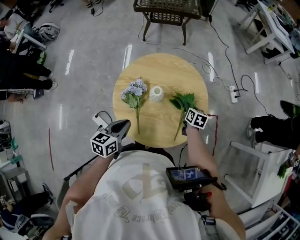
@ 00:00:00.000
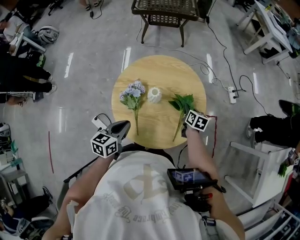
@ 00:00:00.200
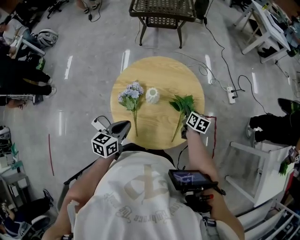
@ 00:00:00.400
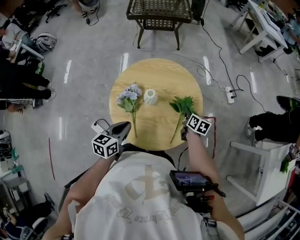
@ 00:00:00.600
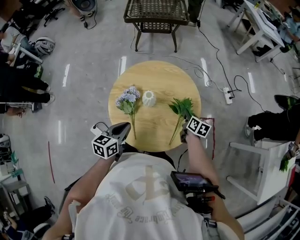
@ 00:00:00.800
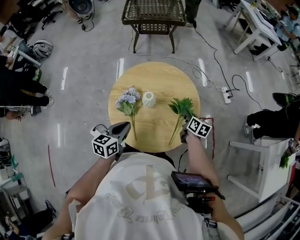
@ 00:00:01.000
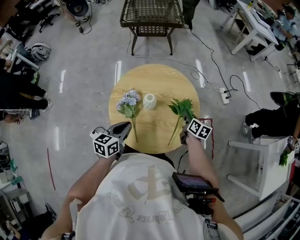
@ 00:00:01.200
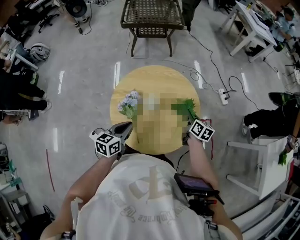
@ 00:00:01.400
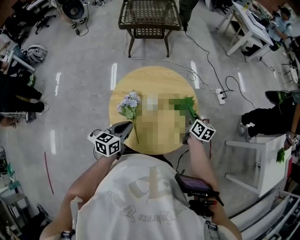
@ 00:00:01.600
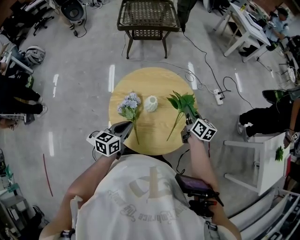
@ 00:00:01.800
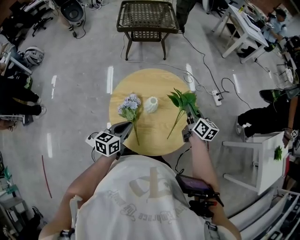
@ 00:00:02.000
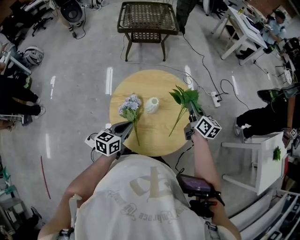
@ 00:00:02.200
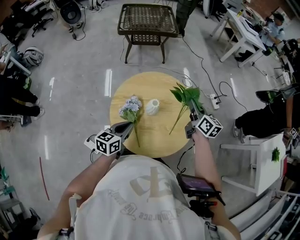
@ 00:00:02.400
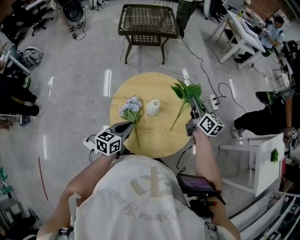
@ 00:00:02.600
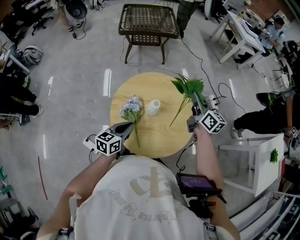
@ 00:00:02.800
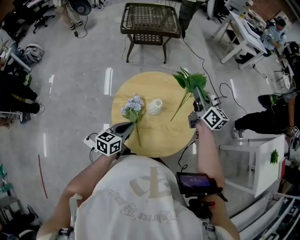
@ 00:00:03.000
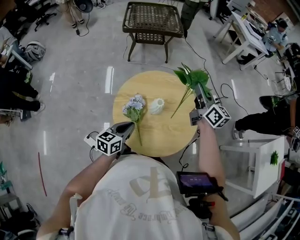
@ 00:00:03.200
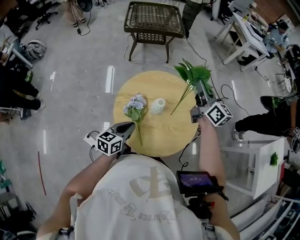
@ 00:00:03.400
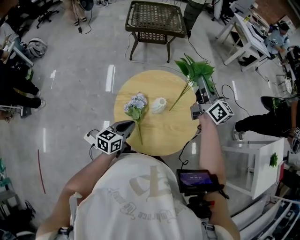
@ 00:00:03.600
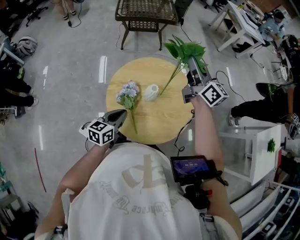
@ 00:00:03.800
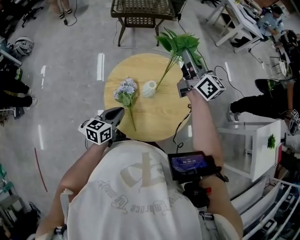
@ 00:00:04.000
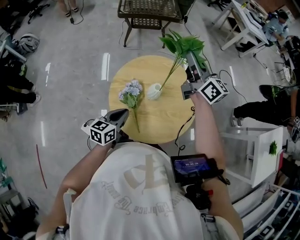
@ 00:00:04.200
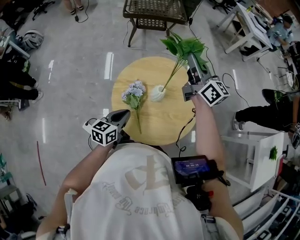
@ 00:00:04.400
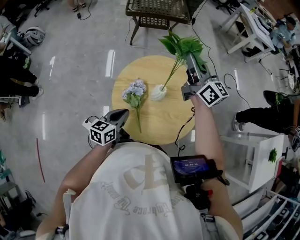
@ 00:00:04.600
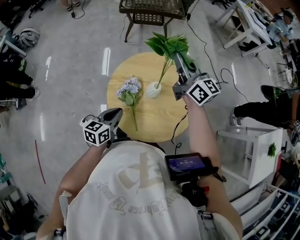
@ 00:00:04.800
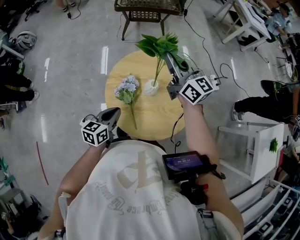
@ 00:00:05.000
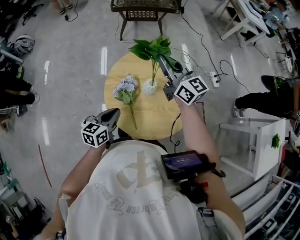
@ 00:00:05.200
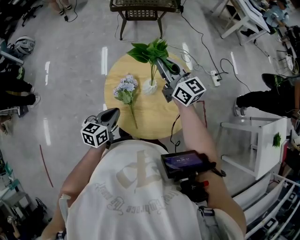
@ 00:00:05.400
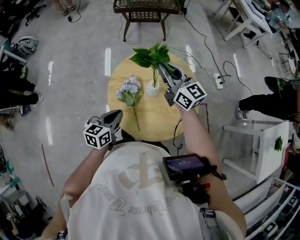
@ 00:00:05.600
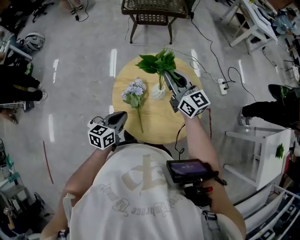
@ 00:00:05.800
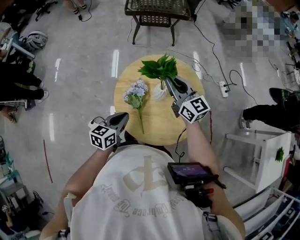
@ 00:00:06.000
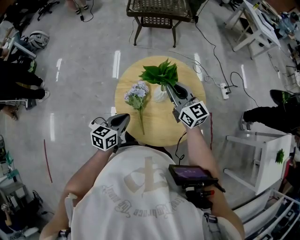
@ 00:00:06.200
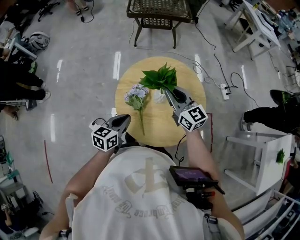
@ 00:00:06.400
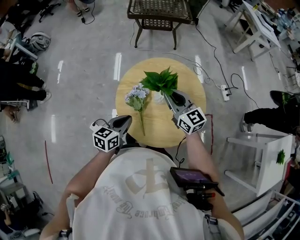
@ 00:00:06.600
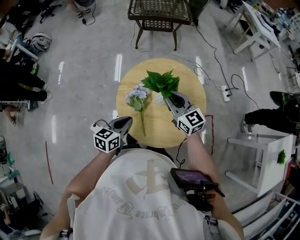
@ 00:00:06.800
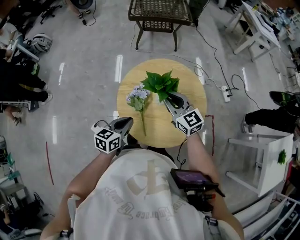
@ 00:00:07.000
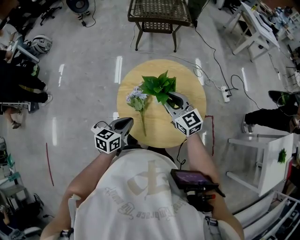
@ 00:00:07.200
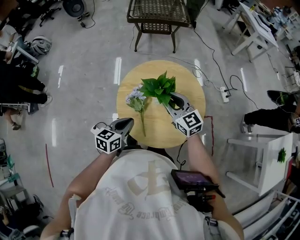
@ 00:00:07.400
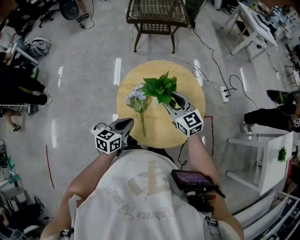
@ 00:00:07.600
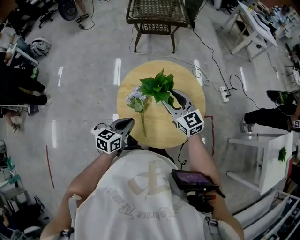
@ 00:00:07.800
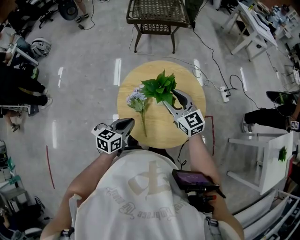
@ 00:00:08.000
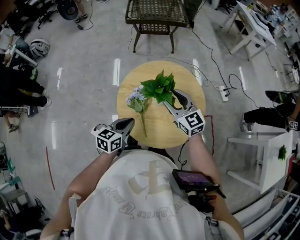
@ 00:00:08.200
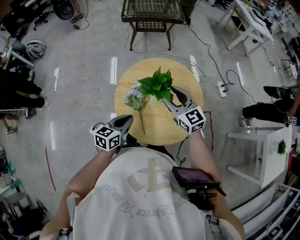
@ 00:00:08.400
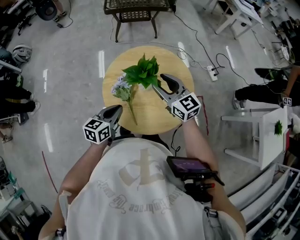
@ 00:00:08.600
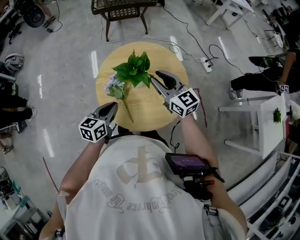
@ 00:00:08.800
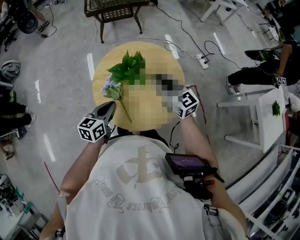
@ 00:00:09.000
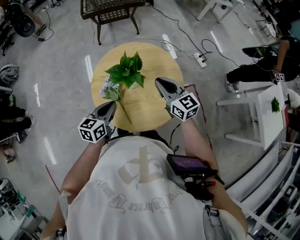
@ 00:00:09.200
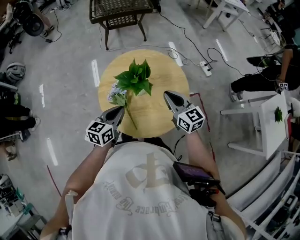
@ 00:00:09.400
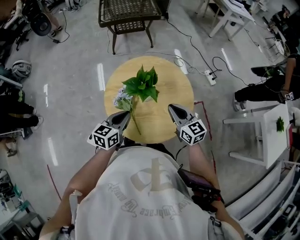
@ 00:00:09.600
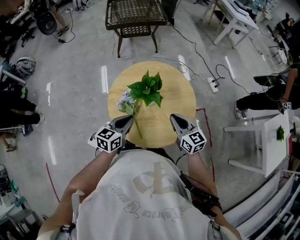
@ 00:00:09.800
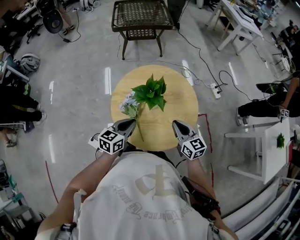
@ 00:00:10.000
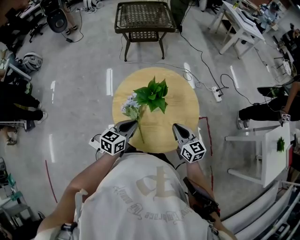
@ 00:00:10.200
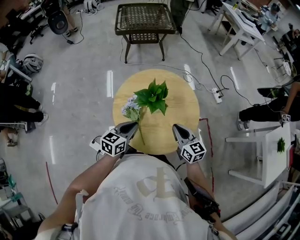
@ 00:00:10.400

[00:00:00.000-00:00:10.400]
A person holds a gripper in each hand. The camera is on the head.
00:00:00.000 to 00:00:01.400: The right gripper moves upward, some 10 cm.
00:00:01.400 to 00:00:03.000: The right gripper moves upward, some 20 cm, and turns by roughly 30 degrees.
00:00:03.000 to 00:00:04.400: The right gripper heads to the left and upward, covering roughly 10 cm.
00:00:04.400 to 00:00:06.000: The right gripper heads downward, to the left and backward, covering roughly 15 cm.
00:00:06.000 to 00:00:07.400: The right gripper goes roughly 5 cm backward.
00:00:07.400 to 00:00:09.000: The right gripper travels to the right by approximately 5 cm, and opens, then closes once more.
00:00:09.000 to 00:00:10.400: The right gripper heads backward and downward, covering roughly 10 cm.

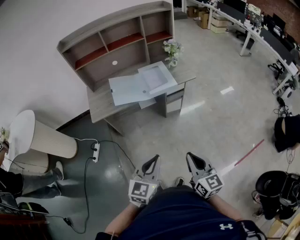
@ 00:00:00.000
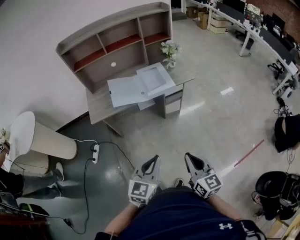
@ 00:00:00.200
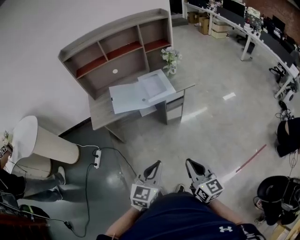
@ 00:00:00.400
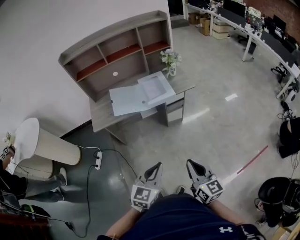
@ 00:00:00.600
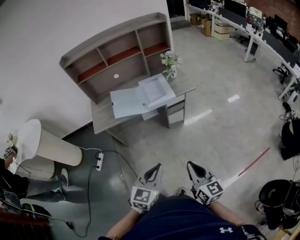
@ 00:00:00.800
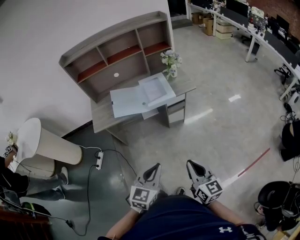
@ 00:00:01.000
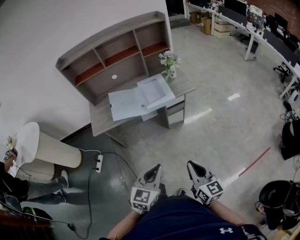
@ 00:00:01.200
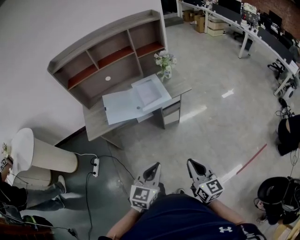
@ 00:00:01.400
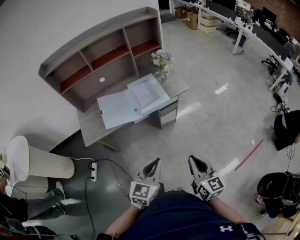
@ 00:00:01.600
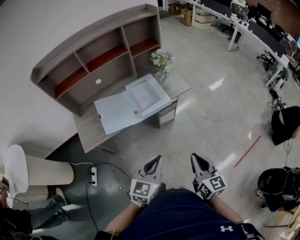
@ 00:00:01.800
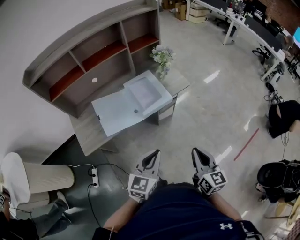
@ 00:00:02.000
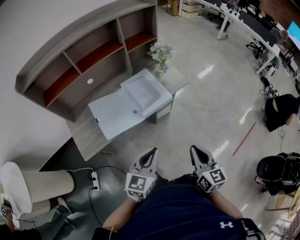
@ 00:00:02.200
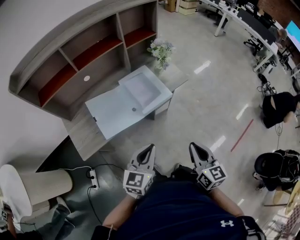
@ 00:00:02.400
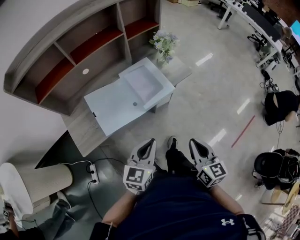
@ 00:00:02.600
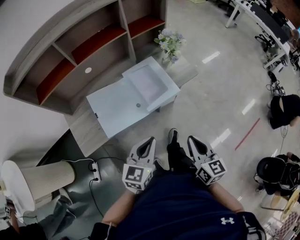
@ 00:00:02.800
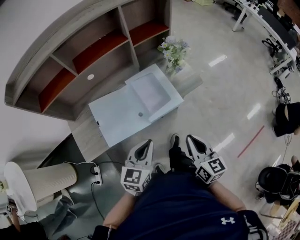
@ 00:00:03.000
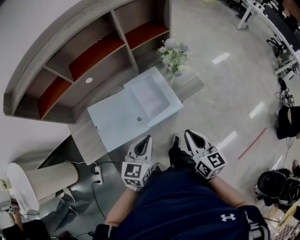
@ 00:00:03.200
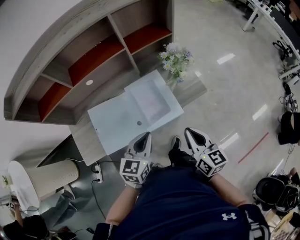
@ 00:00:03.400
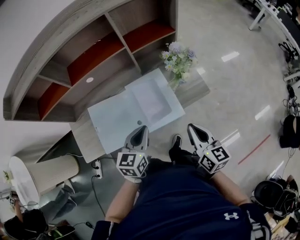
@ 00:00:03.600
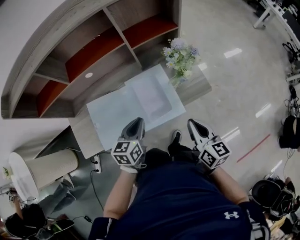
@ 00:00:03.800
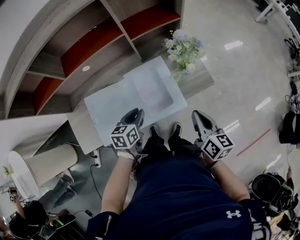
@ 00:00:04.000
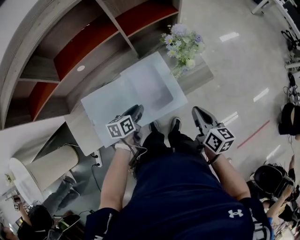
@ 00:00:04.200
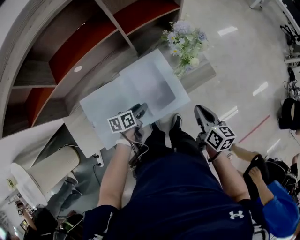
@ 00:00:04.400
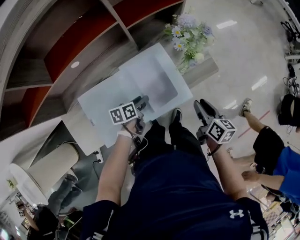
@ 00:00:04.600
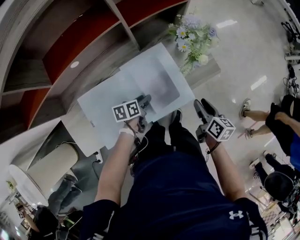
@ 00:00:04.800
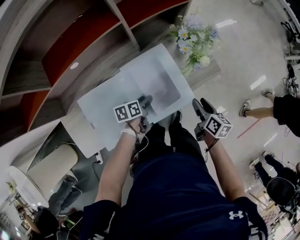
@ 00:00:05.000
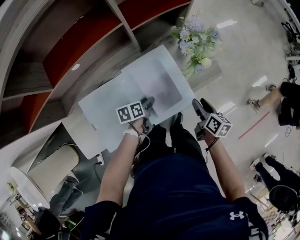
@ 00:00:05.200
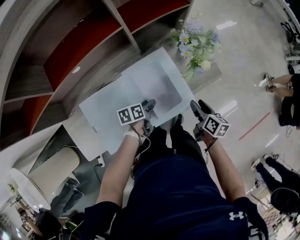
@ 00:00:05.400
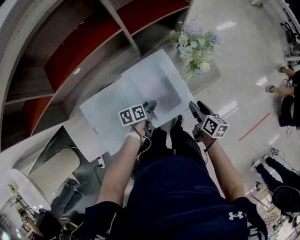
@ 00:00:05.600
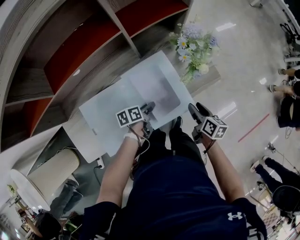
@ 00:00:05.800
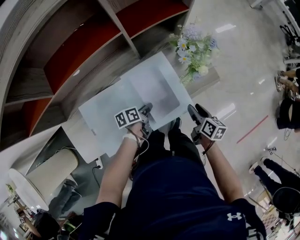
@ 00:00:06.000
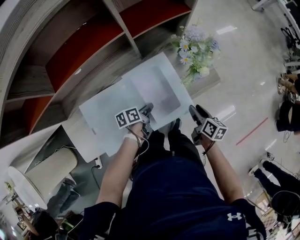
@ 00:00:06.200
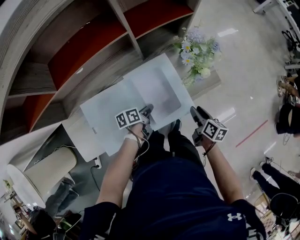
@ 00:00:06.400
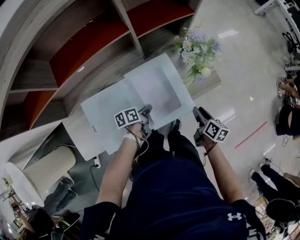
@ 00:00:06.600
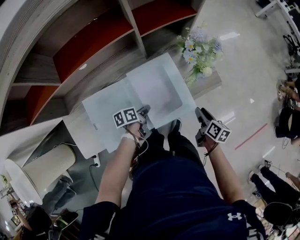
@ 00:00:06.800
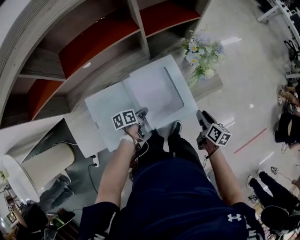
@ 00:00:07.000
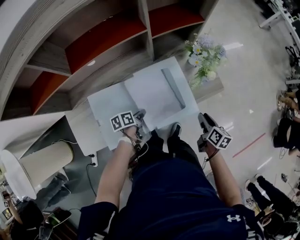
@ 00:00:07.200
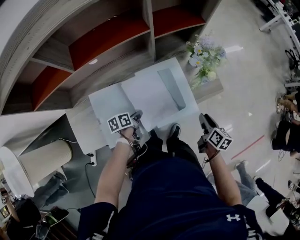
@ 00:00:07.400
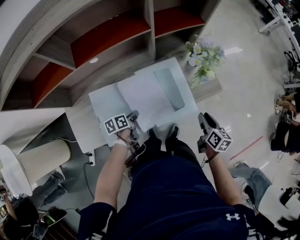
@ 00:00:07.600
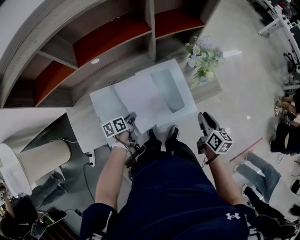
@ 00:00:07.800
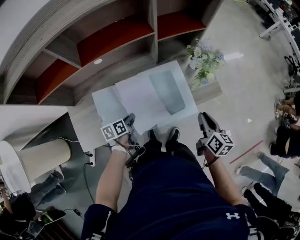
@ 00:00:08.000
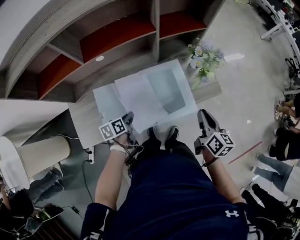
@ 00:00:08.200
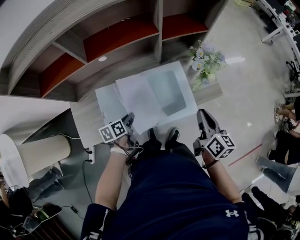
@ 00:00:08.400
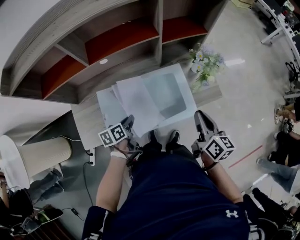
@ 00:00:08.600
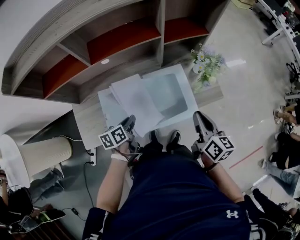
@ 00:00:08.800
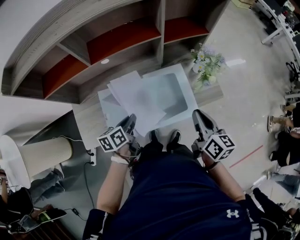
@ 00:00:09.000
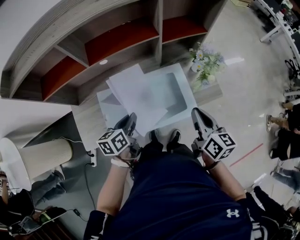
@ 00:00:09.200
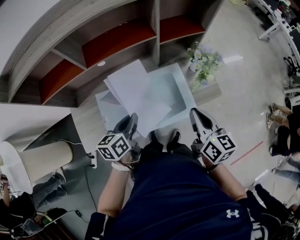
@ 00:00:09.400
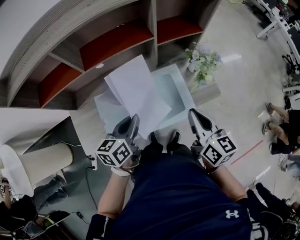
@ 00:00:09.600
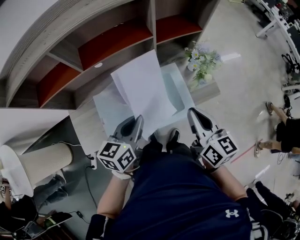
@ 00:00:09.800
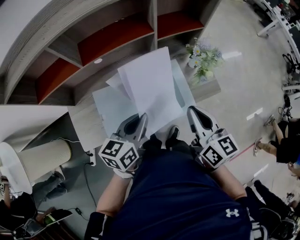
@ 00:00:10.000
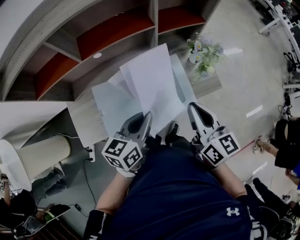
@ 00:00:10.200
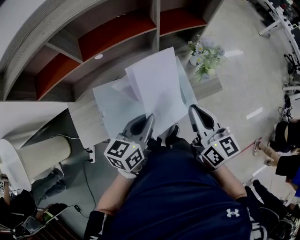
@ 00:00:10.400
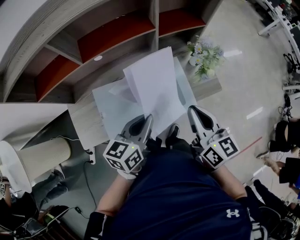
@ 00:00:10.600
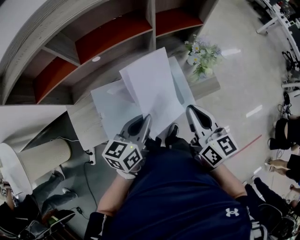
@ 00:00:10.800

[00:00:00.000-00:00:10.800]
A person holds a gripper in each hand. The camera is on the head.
00:00:00.000 to 00:00:01.600: The two grippers go roughly 15 cm forward.
00:00:01.600 to 00:00:03.000: The two grippers go about 30 cm forward and to the left.
00:00:03.000 to 00:00:04.600: Both grippers travel together forward and downward, some 30 cm. The right gripper turns by about 30 degrees, and opens. The left gripper rolls counterclockwise, seen from behind, by about 40 degrees, and opens its fingers.
00:00:04.600 to 00:00:06.200: The left gripper closes; the right gripper travels downward by roughly 10 cm.
00:00:06.200 to 00:00:07.800: The right gripper is displaced upward by roughly 10 cm. The left gripper goes some 15 cm to the left and backward.
00:00:07.800 to 00:00:09.200: The right gripper moves upward and to the left, about 15 cm, and closes up, while the left gripper is displaced upward by about 15 cm, and changes its angle by approximately 20 degrees.
00:00:09.200 to 00:00:10.800: The left gripper goes about 10 cm to the right and upward; the right gripper ends up about 5 cm from where it was.

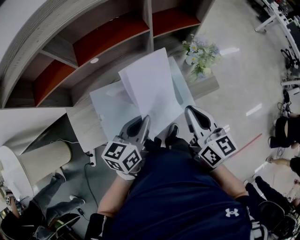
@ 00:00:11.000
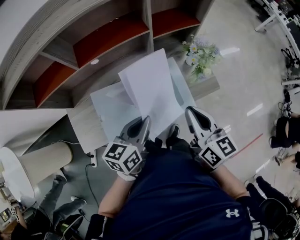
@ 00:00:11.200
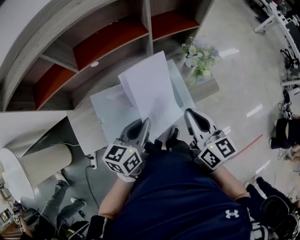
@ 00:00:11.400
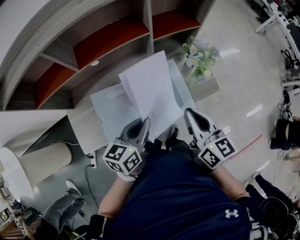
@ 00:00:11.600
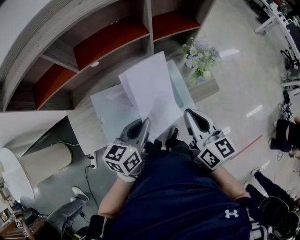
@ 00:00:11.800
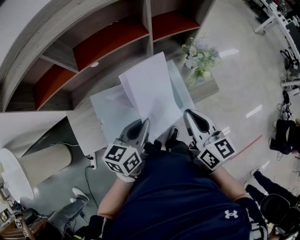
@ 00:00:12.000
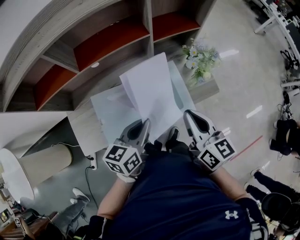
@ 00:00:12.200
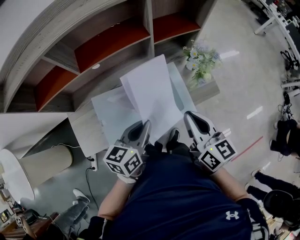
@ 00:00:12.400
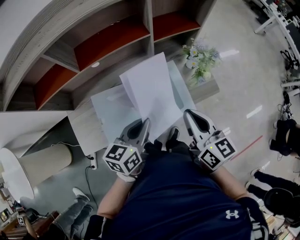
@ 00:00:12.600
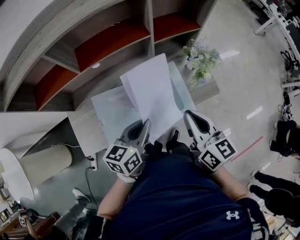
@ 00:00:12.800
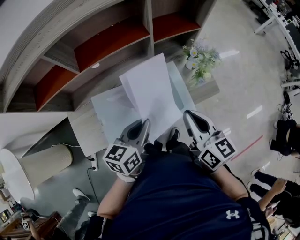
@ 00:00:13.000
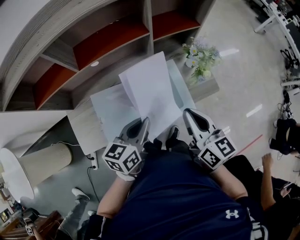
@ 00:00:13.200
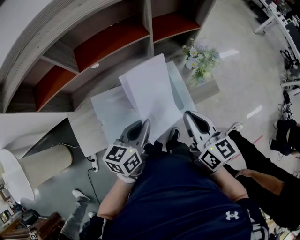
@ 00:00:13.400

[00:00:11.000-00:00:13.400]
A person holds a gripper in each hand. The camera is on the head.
00:00:11.000 to 00:00:13.400: Neither gripper changes place.
